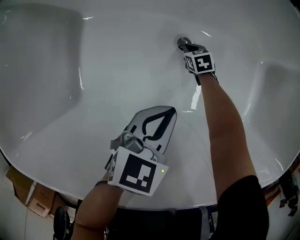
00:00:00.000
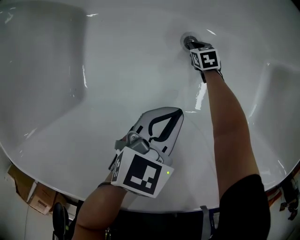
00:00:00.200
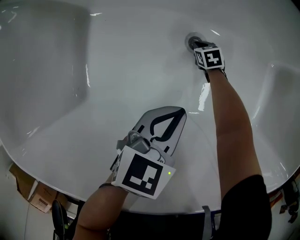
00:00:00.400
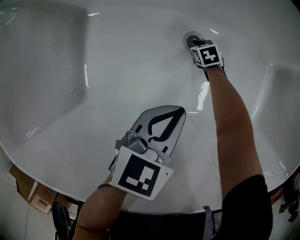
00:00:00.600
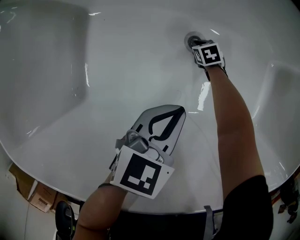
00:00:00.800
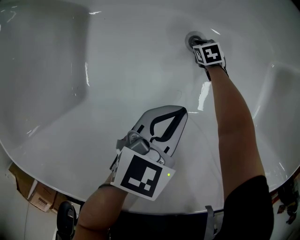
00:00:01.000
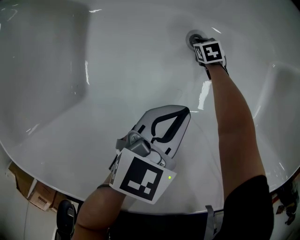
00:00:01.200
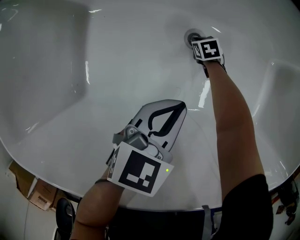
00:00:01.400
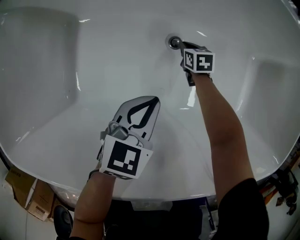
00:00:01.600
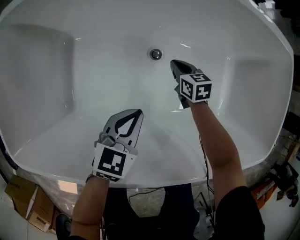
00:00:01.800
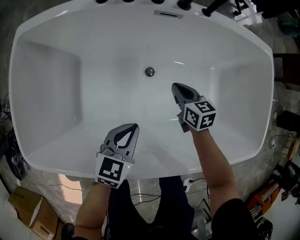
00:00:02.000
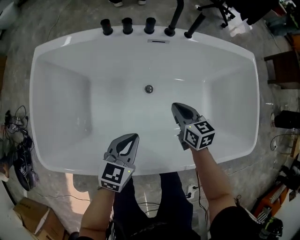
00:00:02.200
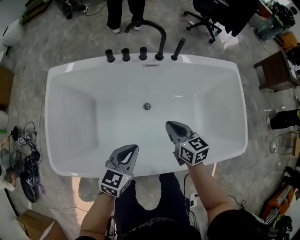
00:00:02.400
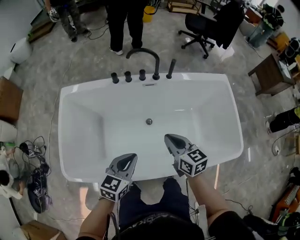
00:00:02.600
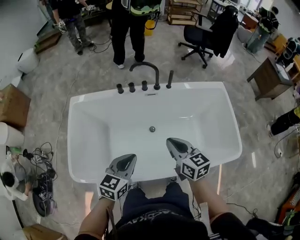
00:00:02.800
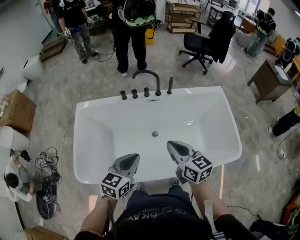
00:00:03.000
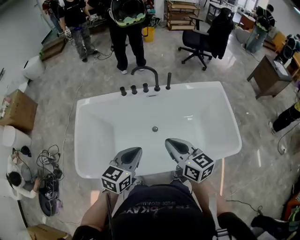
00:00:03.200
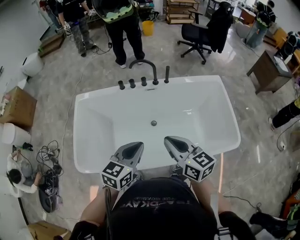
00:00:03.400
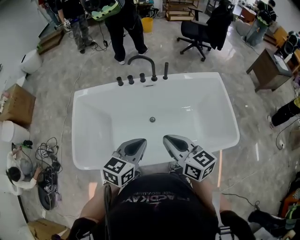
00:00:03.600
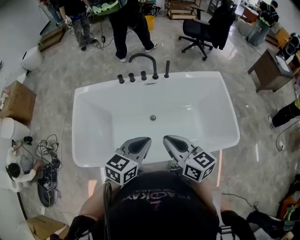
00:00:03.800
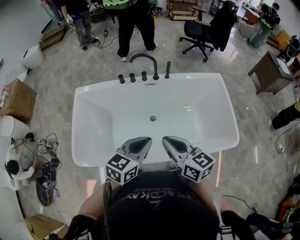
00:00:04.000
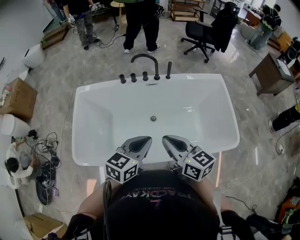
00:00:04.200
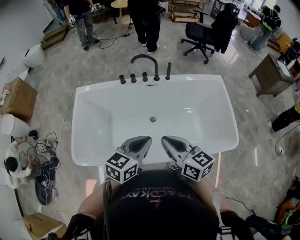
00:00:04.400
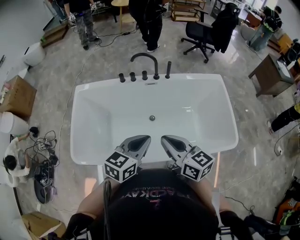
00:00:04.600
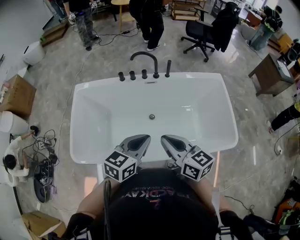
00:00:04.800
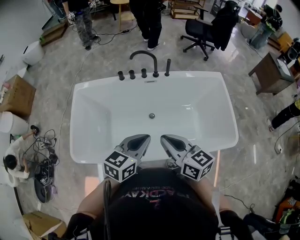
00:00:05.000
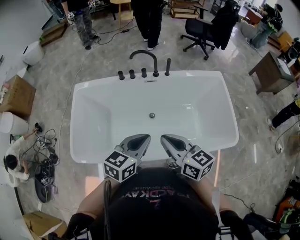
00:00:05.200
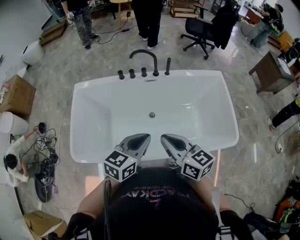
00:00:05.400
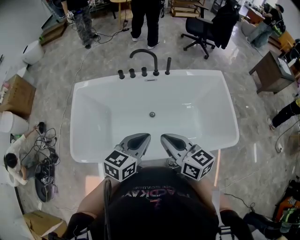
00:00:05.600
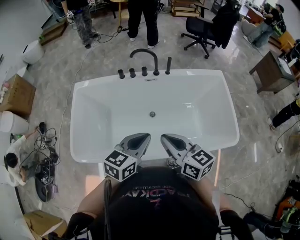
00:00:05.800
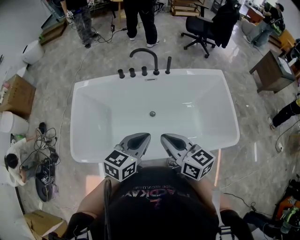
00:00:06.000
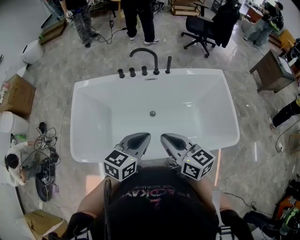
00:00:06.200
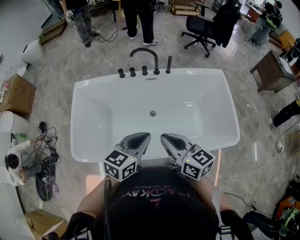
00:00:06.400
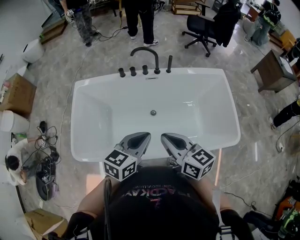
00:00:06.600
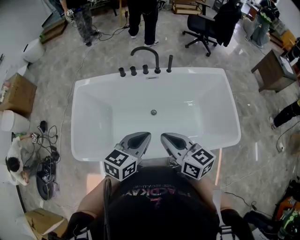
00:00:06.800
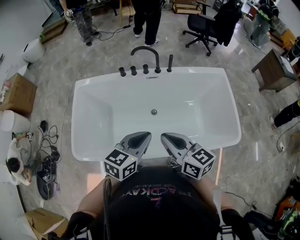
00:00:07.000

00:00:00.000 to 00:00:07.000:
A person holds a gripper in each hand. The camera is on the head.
00:00:00.000 to 00:00:01.400: There are only small adjustments of the grippers.
00:00:01.400 to 00:00:02.800: The left gripper is displaced upward by roughly 35 cm, while the right gripper travels upward by approximately 70 cm, and points its fingers some 50 degrees further upward.
00:00:02.800 to 00:00:04.200: The left gripper shifts some 10 cm to the right and upward. The right gripper shifts approximately 10 cm upward and backward.
00:00:04.200 to 00:00:07.000: Both grippers stay about where they are.

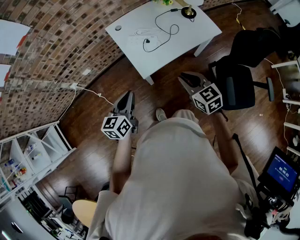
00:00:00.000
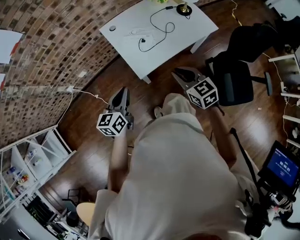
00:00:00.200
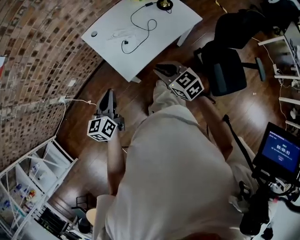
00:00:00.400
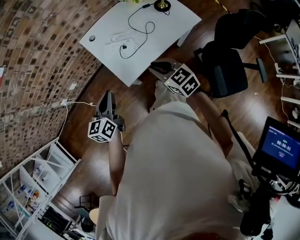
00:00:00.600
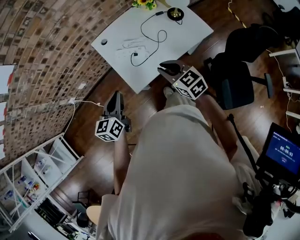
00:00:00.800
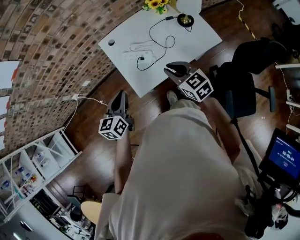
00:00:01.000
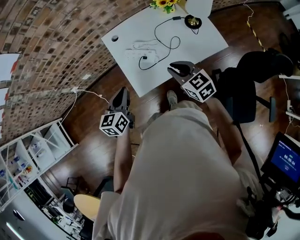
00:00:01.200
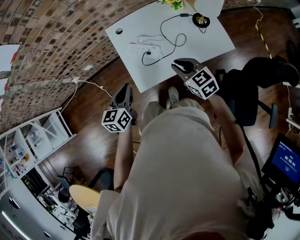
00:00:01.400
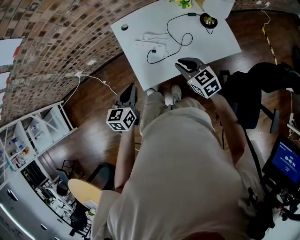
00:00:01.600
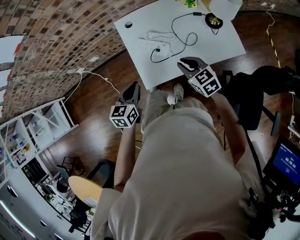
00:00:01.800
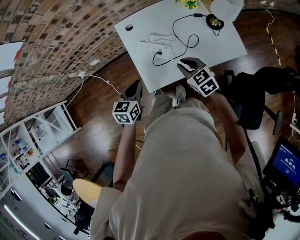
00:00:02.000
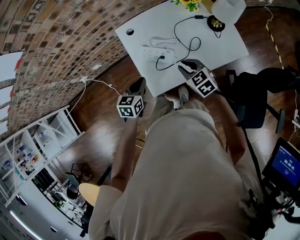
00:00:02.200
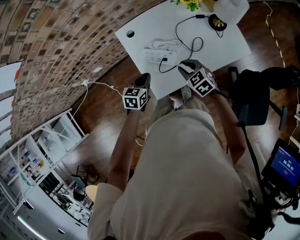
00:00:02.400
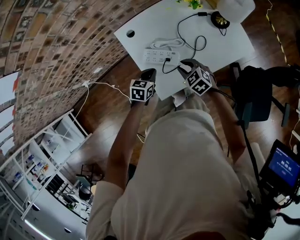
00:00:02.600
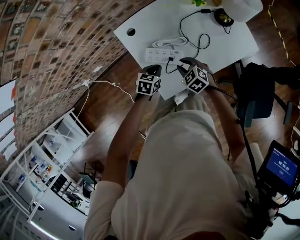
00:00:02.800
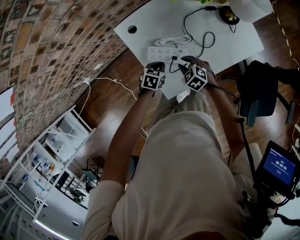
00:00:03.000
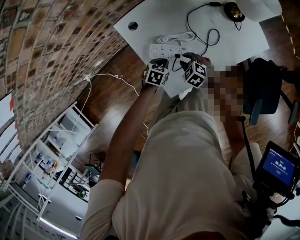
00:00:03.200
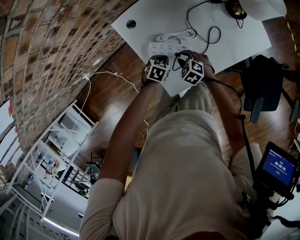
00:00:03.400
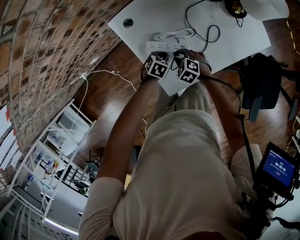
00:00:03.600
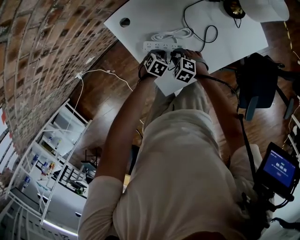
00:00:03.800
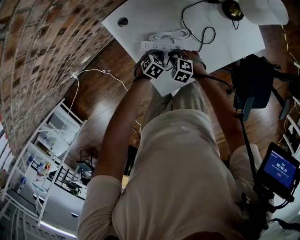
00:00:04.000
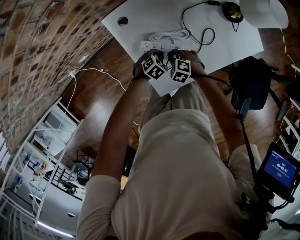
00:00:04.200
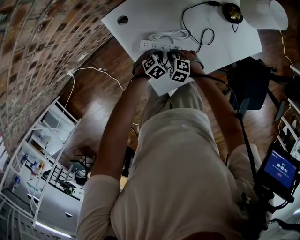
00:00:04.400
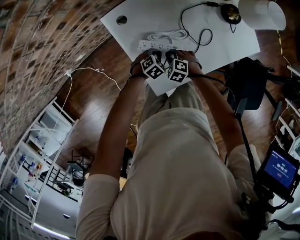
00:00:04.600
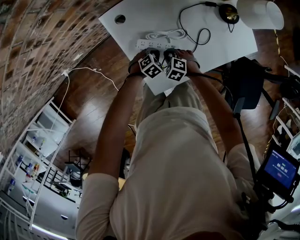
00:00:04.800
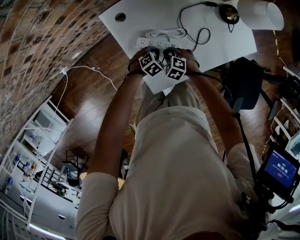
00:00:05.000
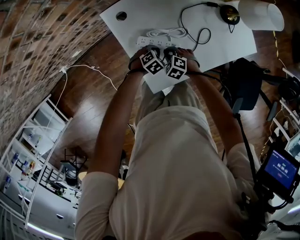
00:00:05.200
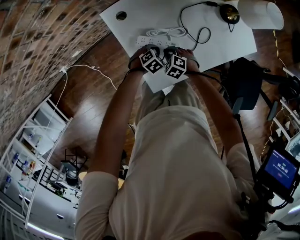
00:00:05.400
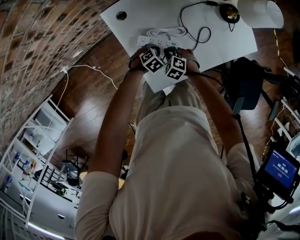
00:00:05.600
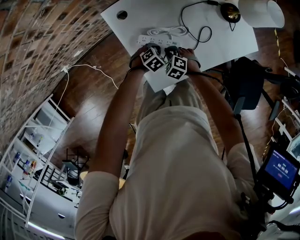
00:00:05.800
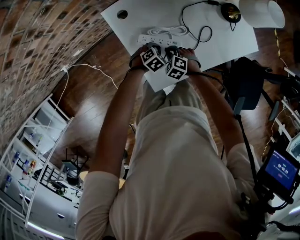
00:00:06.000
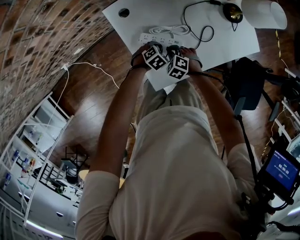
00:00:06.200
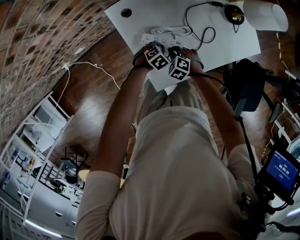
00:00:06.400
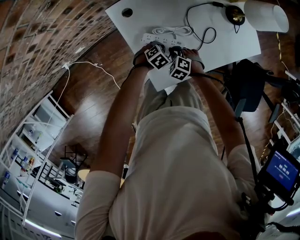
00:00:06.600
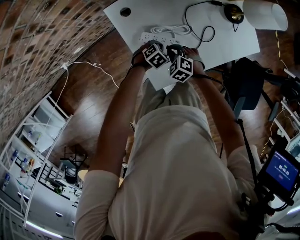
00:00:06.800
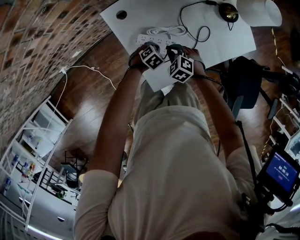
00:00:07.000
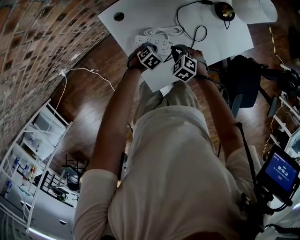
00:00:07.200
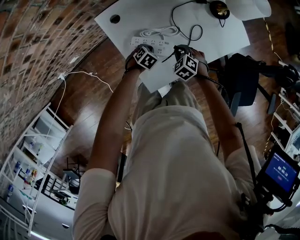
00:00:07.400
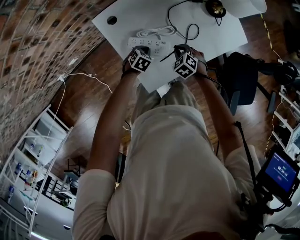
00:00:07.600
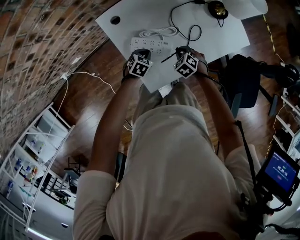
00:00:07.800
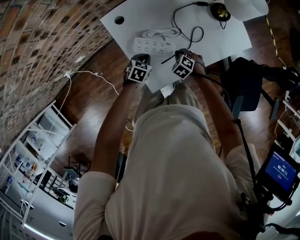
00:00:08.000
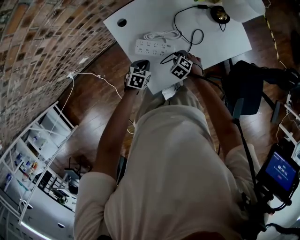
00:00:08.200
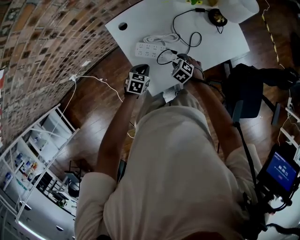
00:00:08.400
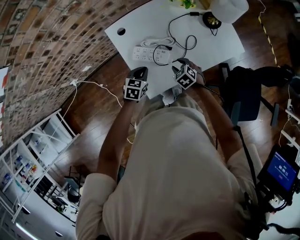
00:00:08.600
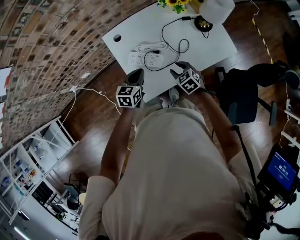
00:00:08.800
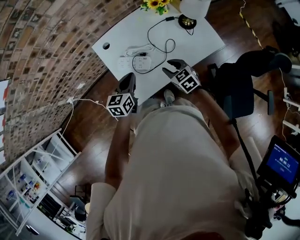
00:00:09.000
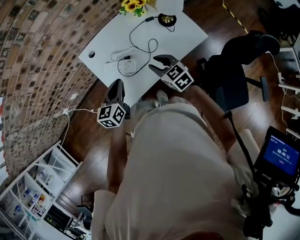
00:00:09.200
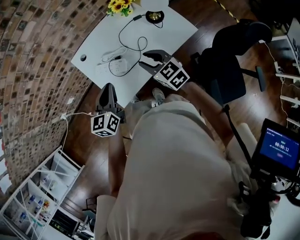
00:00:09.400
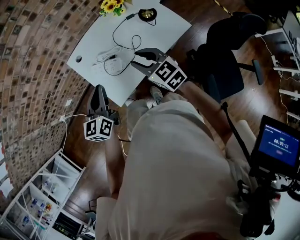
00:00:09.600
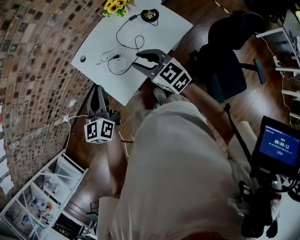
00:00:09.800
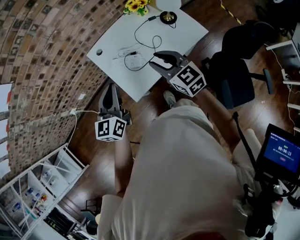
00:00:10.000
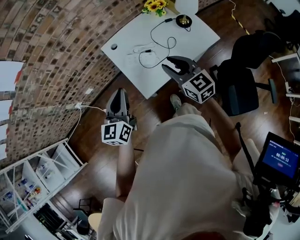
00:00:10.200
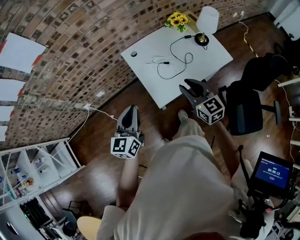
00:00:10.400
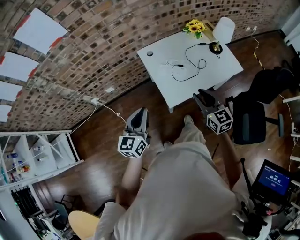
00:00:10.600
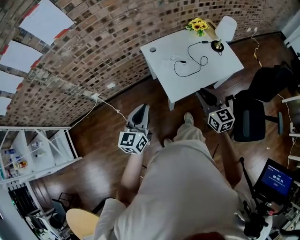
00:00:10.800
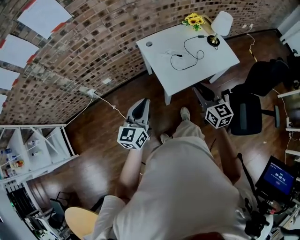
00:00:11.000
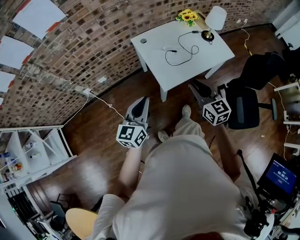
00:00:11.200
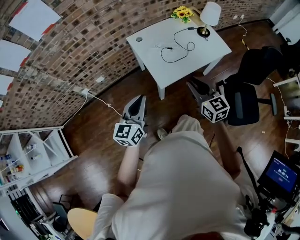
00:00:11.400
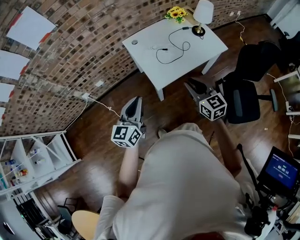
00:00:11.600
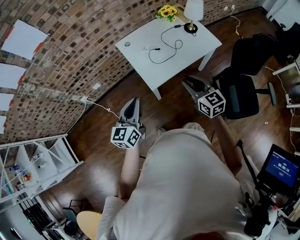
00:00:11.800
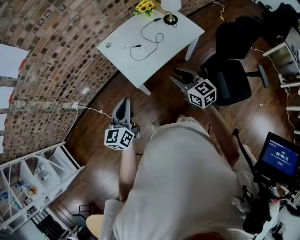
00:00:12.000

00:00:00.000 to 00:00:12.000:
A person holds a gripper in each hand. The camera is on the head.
00:00:00.000 to 00:00:01.600: The left gripper heads forward and to the right, covering roughly 20 cm; the right gripper moves forward, approximately 25 cm.
00:00:01.600 to 00:00:03.000: The right gripper goes roughly 25 cm downward, forward and to the left, and changes its angle by approximately 30 degrees, while the left gripper heads downward and forward, covering some 30 cm, and rotates about 40 degrees.
00:00:03.000 to 00:00:04.400: Both grippers travel together downward, about 10 cm. The left gripper swivels approximately 30 degrees.
00:00:04.400 to 00:00:06.000: The grippers move only a little.
00:00:06.000 to 00:00:07.600: The right gripper heads to the right, covering approximately 10 cm.
00:00:07.600 to 00:00:09.000: The left gripper shifts approximately 25 cm upward, and tips its fingers upward by about 40 degrees. Meanwhile the right gripper shifts roughly 15 cm upward, turns by roughly 30 degrees, and opens up.
00:00:09.000 to 00:00:10.400: The right gripper travels upward, backward and to the left by about 25 cm, and swivels roughly 30 degrees. The left gripper is displaced backward, upward and to the left by some 30 cm, and changes its angle by about 20 degrees.
00:00:10.400 to 00:00:12.000: Both grippers move backward and to the right, about 15 cm.

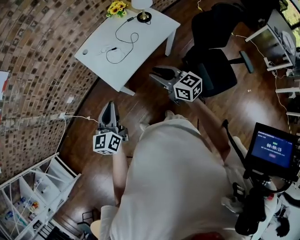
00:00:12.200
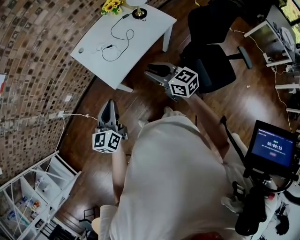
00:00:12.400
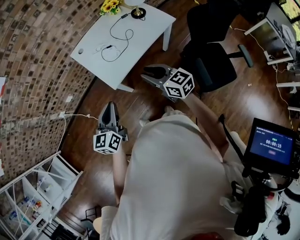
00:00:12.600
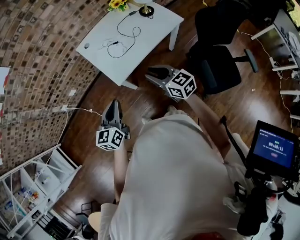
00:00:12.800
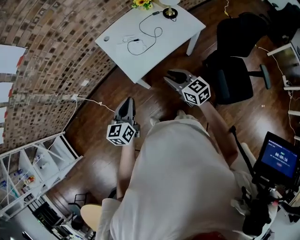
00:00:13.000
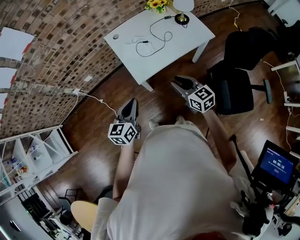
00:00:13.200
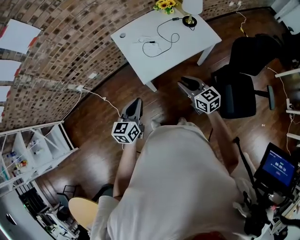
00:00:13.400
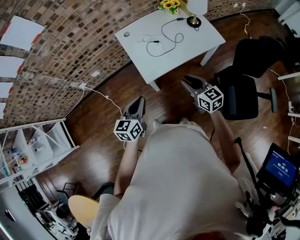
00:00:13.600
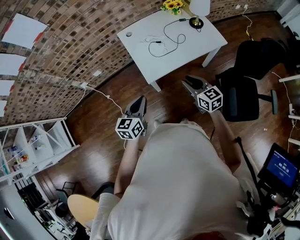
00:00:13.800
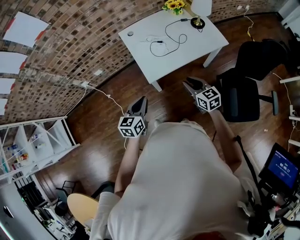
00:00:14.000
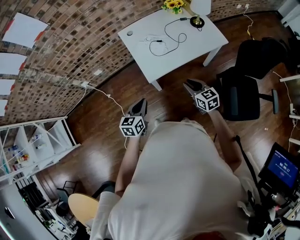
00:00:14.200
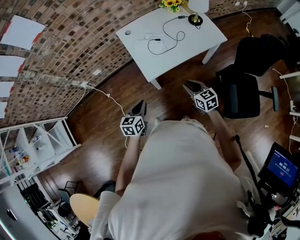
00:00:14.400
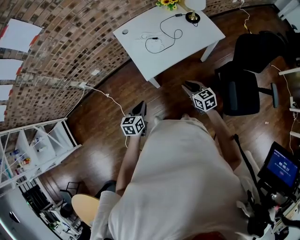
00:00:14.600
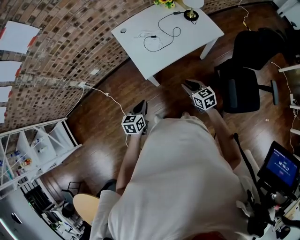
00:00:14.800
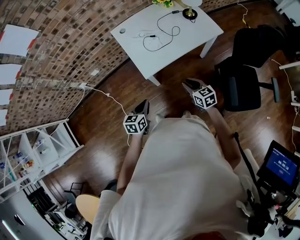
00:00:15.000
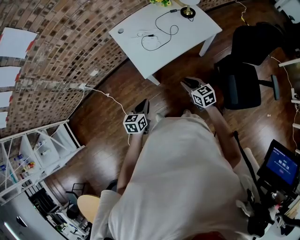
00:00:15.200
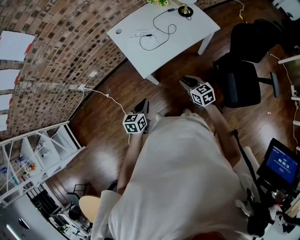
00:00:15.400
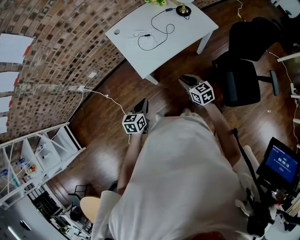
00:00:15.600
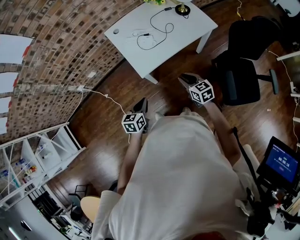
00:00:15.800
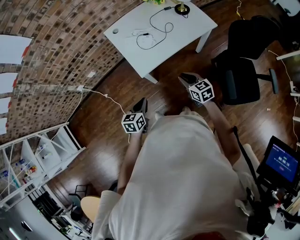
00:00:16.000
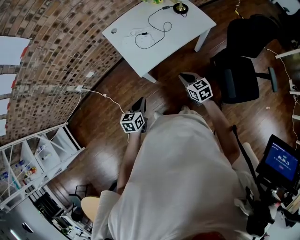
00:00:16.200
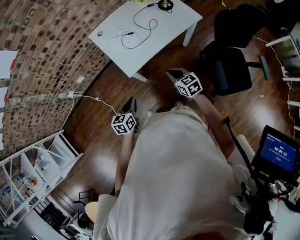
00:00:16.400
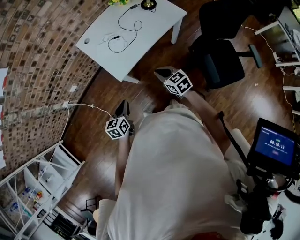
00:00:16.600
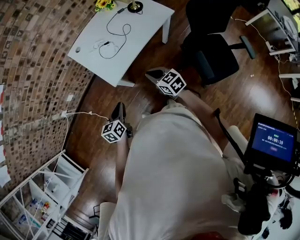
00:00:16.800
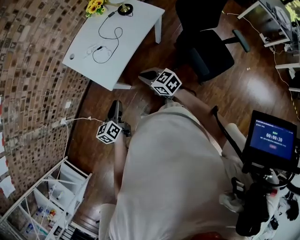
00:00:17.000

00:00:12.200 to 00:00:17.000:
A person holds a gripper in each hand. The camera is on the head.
00:00:12.200 to 00:00:13.800: The grippers both shift downward by roughly 5 cm.
00:00:13.800 to 00:00:15.400: Both grippers travel together downward, approximately 10 cm.
00:00:15.400 to 00:00:17.000: The left gripper changes place by approximately 5 cm. The right gripper closes.
